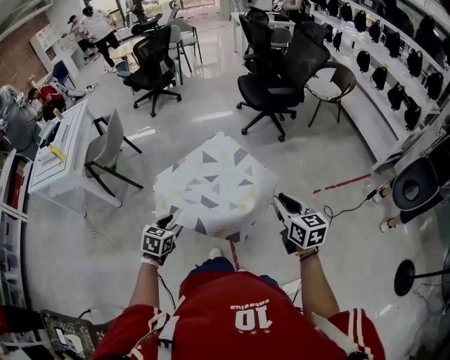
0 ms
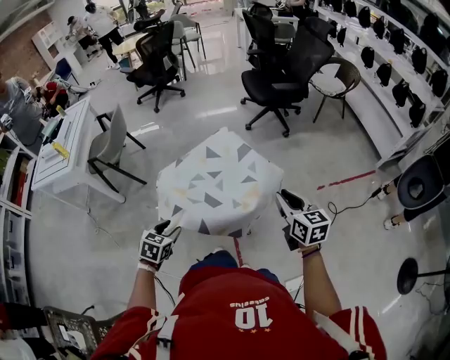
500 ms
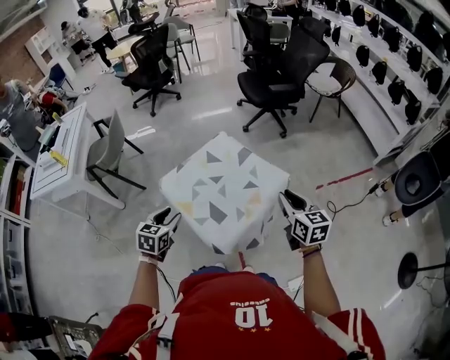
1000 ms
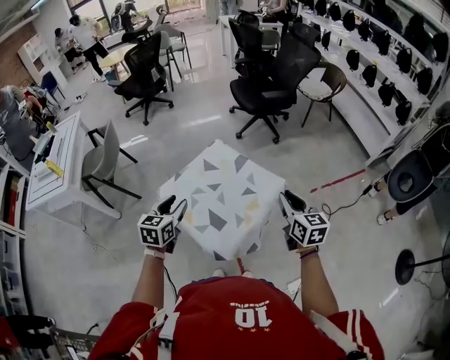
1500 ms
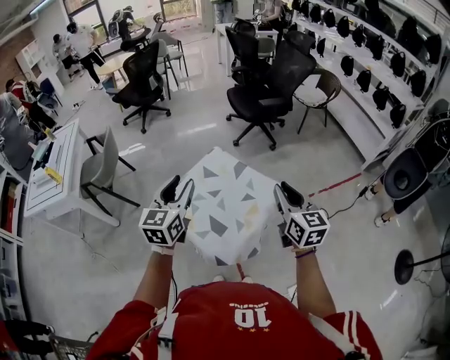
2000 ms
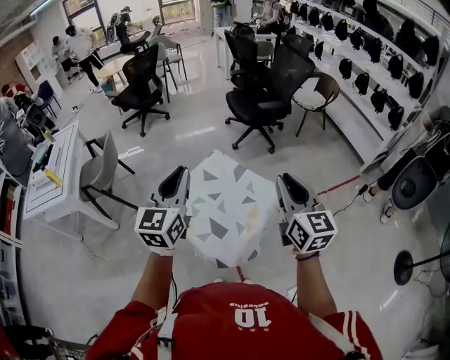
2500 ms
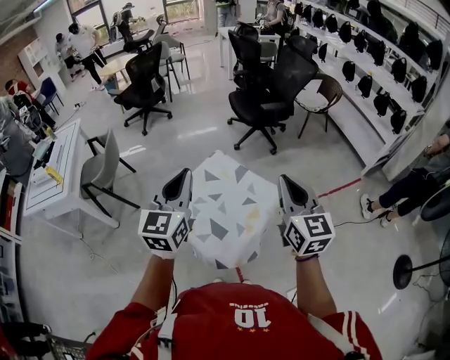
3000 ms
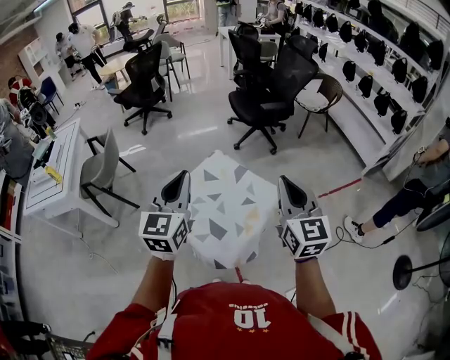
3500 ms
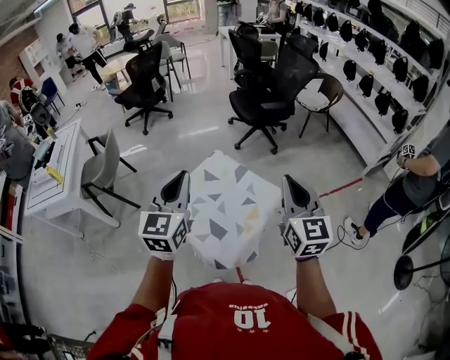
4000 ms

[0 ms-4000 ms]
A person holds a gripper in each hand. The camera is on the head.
0 ms to 2000 ms: The left gripper heads upward and forward, covering about 30 cm, and angles its fingers upward, by approximately 40 degrees. Meanwhile the right gripper shifts roughly 10 cm upward.
2000 ms to 4000 ms: Both grippers travel together upward, some 10 cm. The left gripper closes.

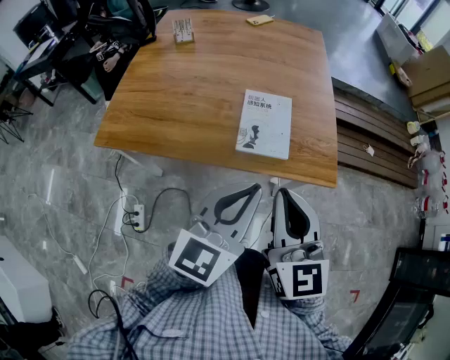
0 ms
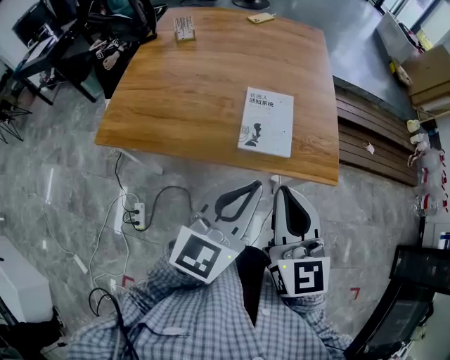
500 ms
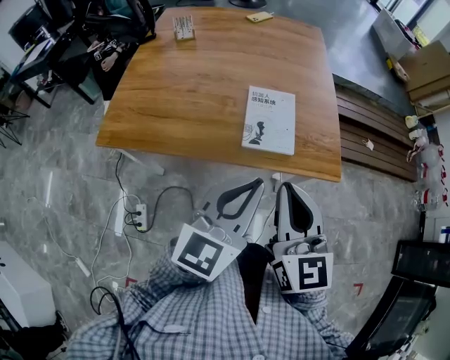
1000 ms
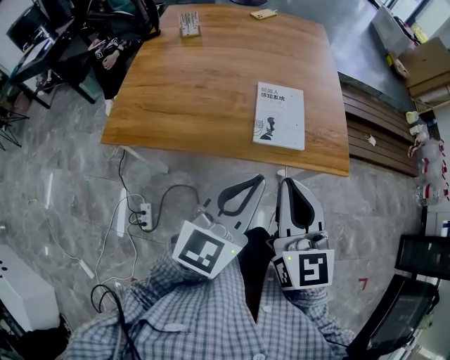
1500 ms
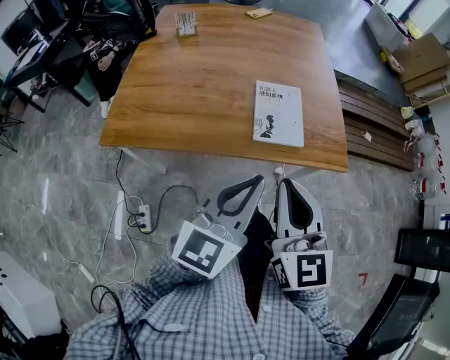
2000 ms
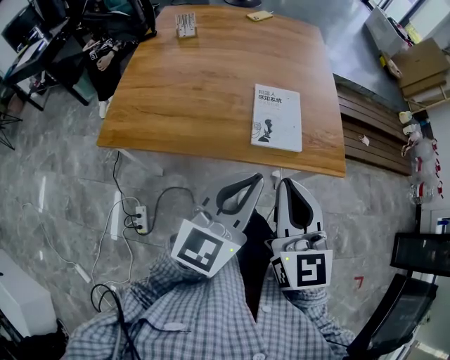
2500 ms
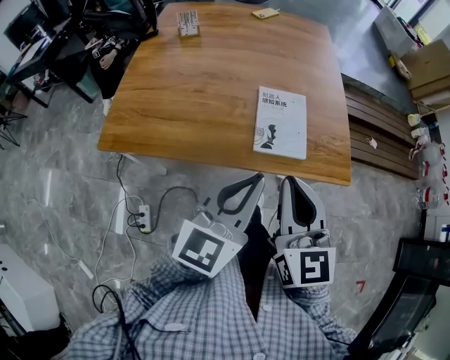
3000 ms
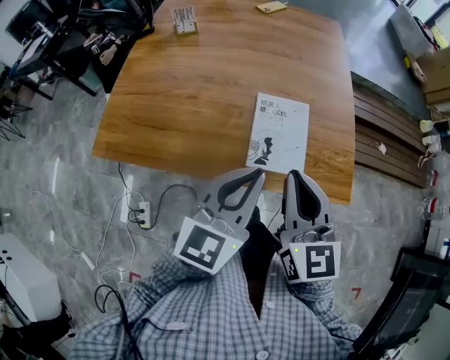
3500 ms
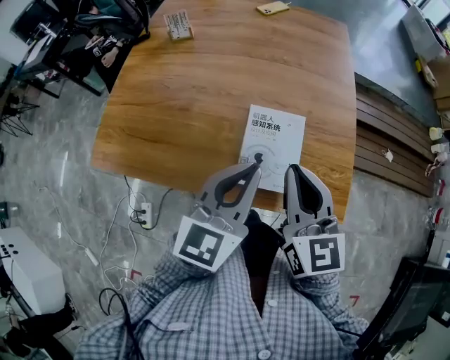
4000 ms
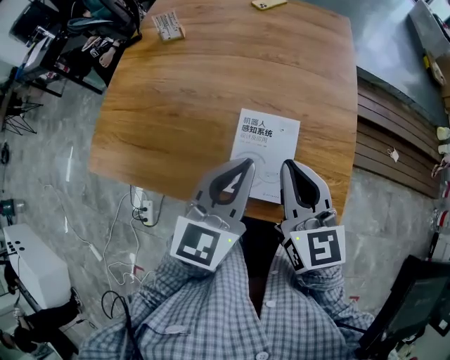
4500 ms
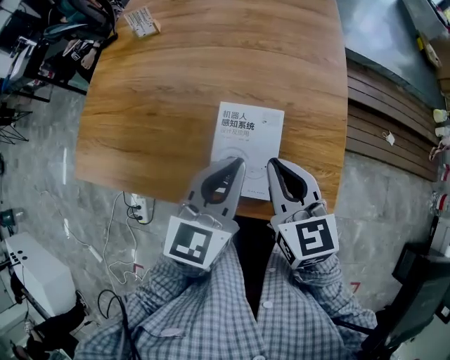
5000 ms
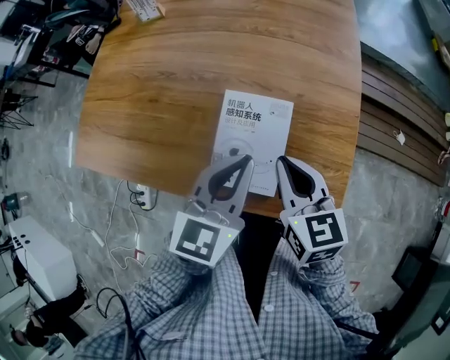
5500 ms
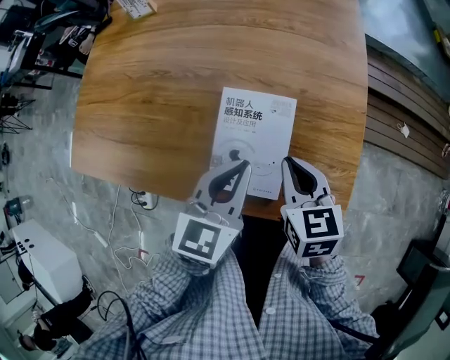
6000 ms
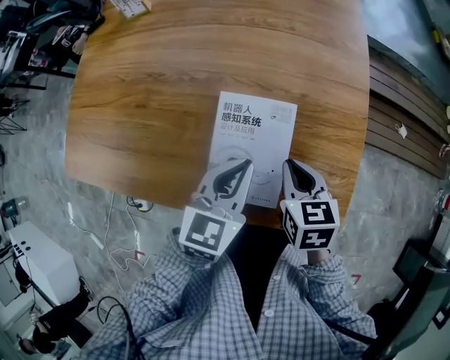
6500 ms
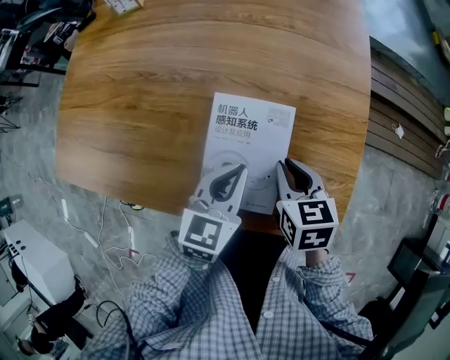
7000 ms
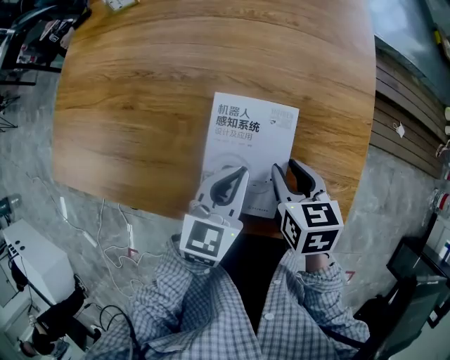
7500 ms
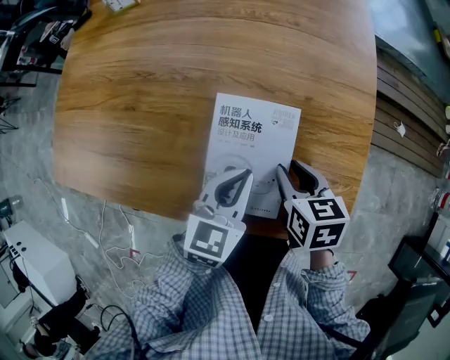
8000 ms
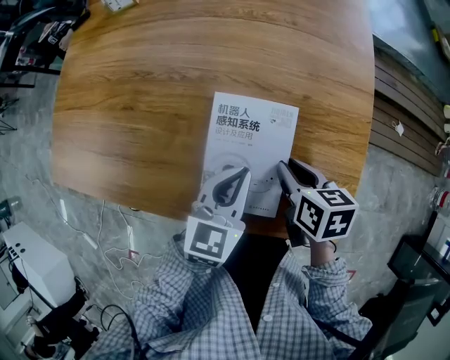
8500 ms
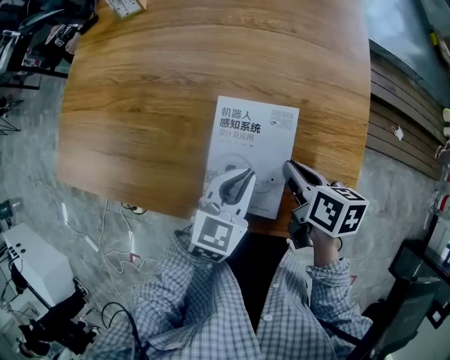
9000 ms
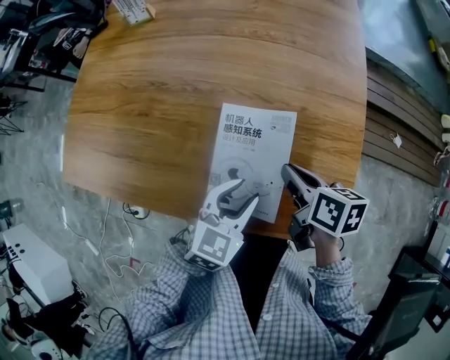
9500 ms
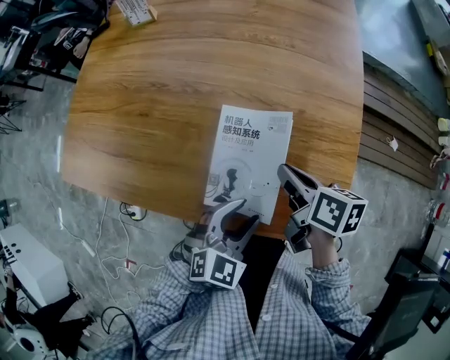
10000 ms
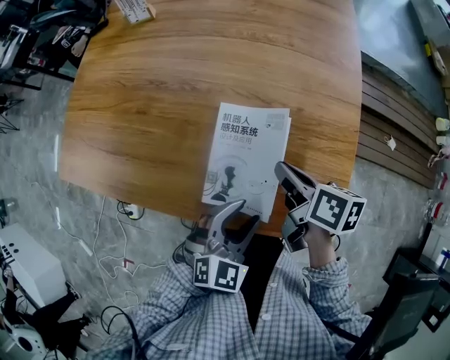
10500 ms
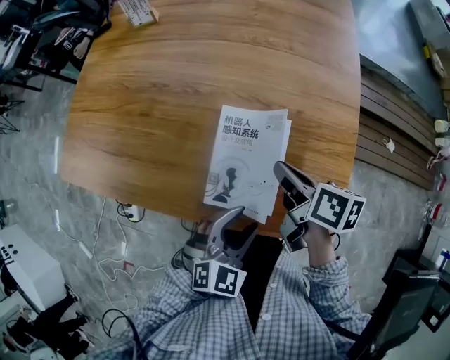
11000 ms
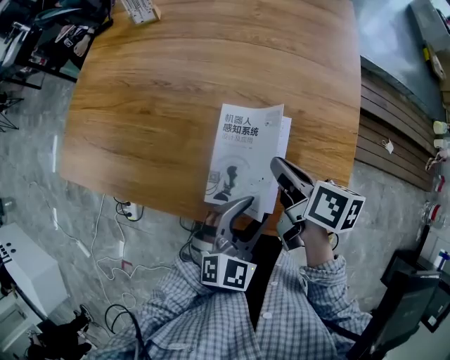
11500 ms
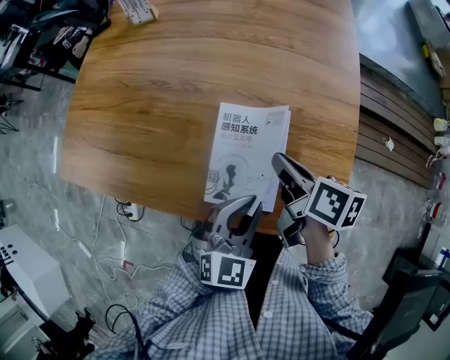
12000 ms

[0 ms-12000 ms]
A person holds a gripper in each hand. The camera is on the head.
0 ms to 2000 ms: Both grippers move to the left, some 5 cm.
2000 ms to 4000 ms: Both grippers move forward, roughly 25 cm.
4000 ms to 6000 ms: The right gripper travels downward and to the right by approximately 20 cm, and turns by about 30 degrees; the left gripper heads downward, forward and to the right, covering approximately 15 cm.
6000 ms to 8000 ms: Both grippers travel together downward, about 10 cm. The right gripper opens up.
8000 ms to 10000 ms: The left gripper moves backward, about 10 cm, turns by some 30 degrees, and opens up. The right gripper goes approximately 5 cm upward, changes its angle by some 30 degrees, and closes up.
10000 ms to 12000 ms: The left gripper closes its fingers.

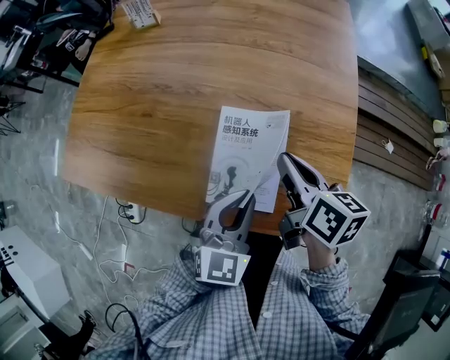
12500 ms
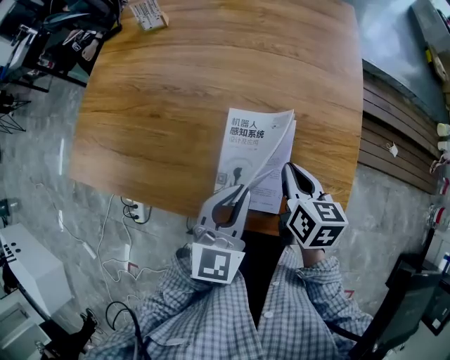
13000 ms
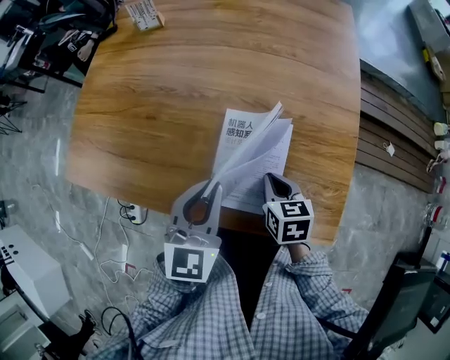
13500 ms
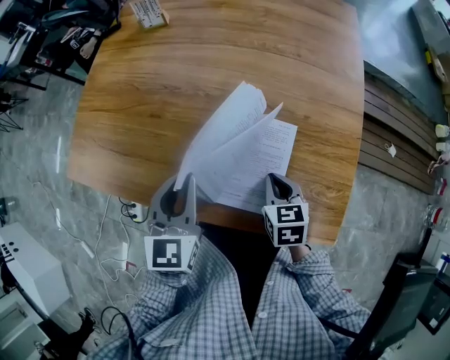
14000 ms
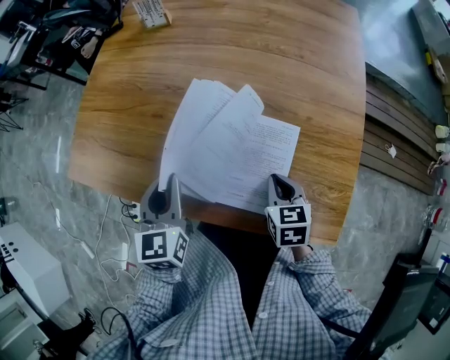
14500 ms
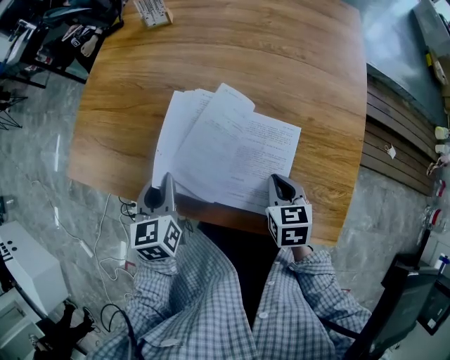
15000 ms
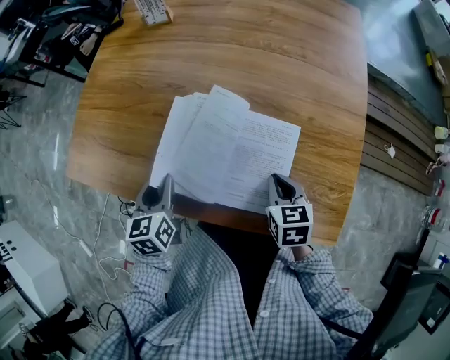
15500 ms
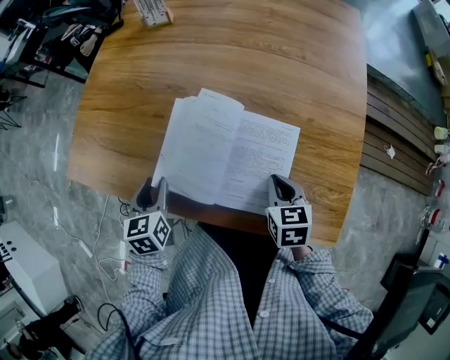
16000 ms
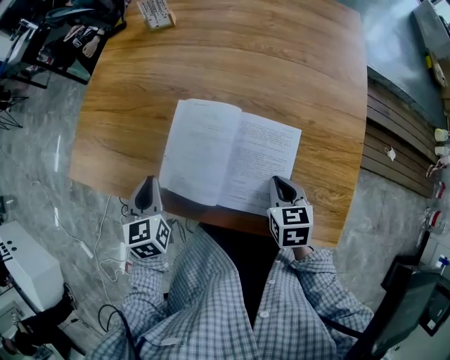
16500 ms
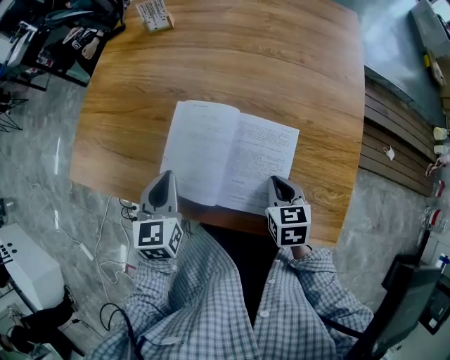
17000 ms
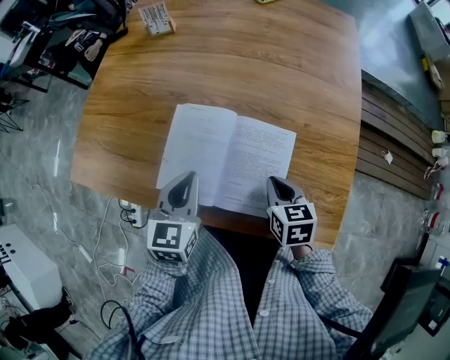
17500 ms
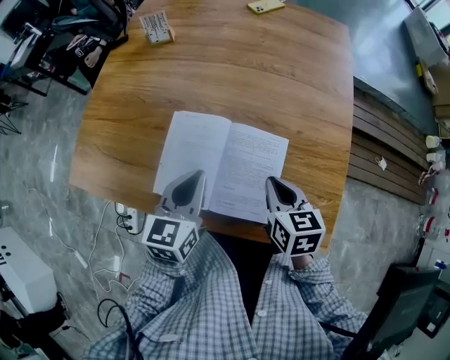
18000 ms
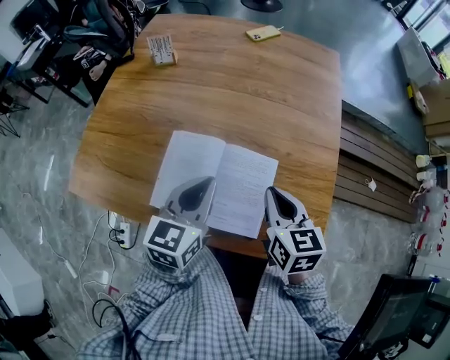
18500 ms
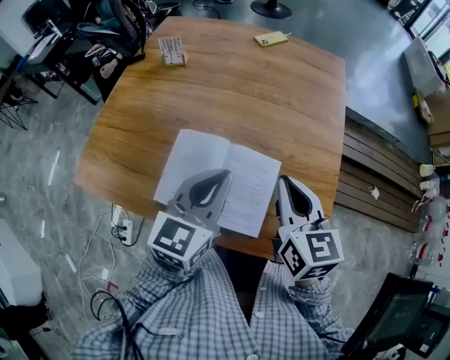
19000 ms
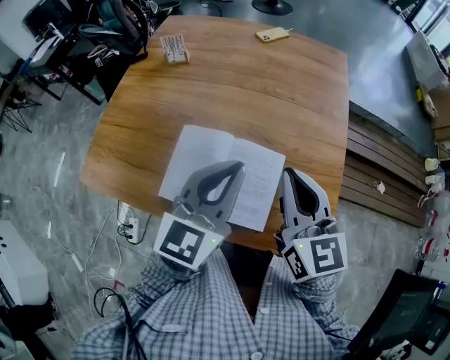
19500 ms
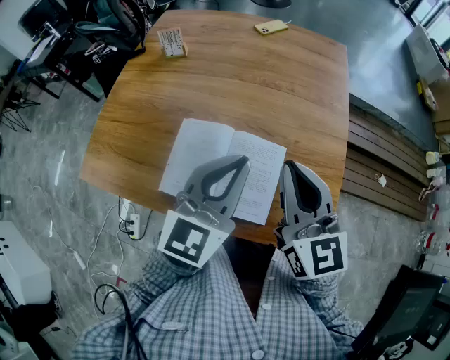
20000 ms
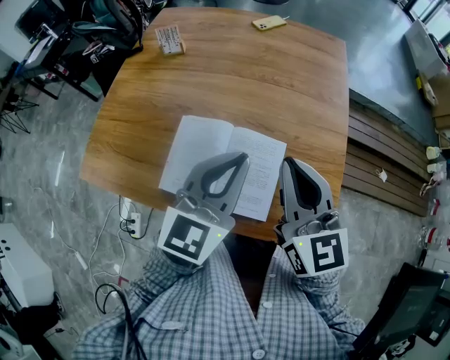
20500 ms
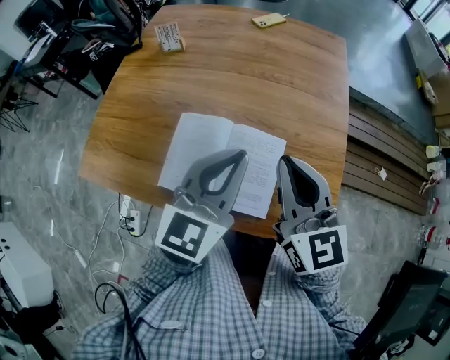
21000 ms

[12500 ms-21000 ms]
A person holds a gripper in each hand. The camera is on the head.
12500 ms to 14500 ms: The right gripper heads downward, covering approximately 10 cm, and turns by about 40 degrees. Meanwhile the left gripper goes about 20 cm to the left, and changes its angle by about 30 degrees.
14500 ms to 16500 ms: The left gripper heads to the left and downward, covering about 10 cm, and opens, then closes again.
16500 ms to 19000 ms: The left gripper shifts roughly 30 cm to the right and upward, and turns by about 40 degrees; the right gripper travels upward by some 25 cm, and turns by approximately 30 degrees.
19000 ms to 21000 ms: The left gripper changes place by some 5 cm. Meanwhile the right gripper ends up approximately 5 cm from where it was.

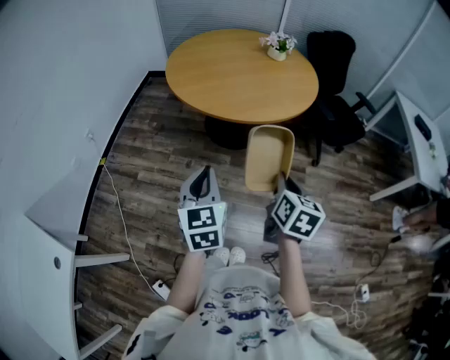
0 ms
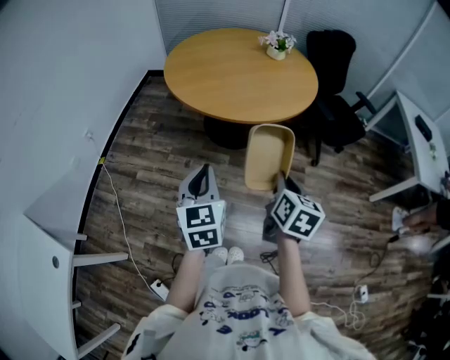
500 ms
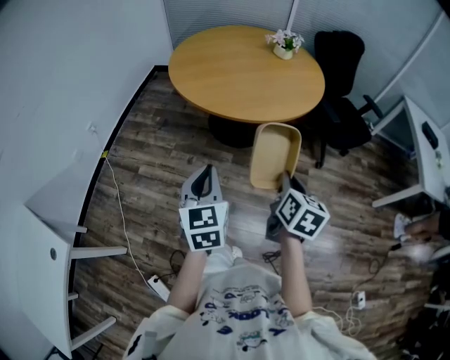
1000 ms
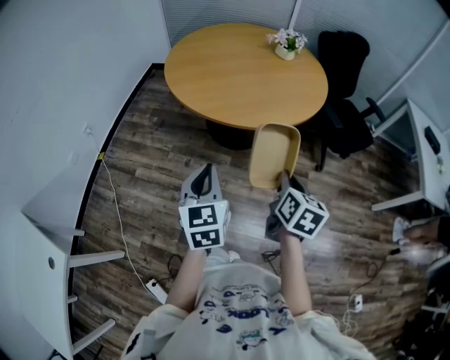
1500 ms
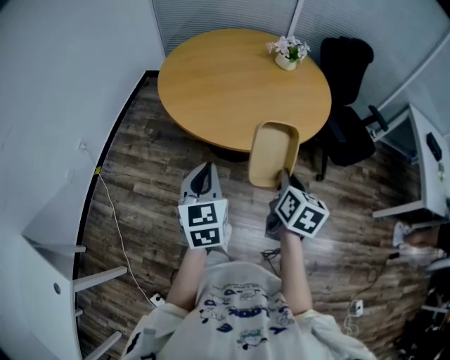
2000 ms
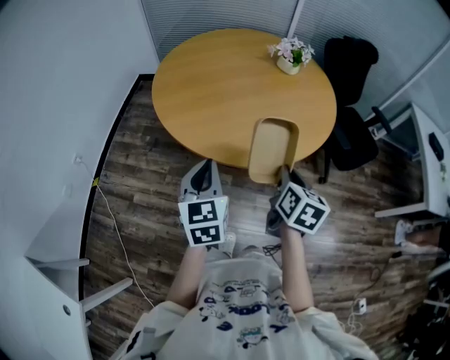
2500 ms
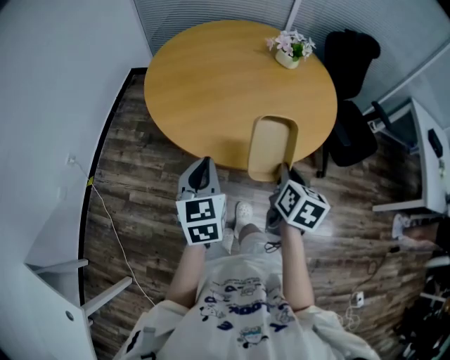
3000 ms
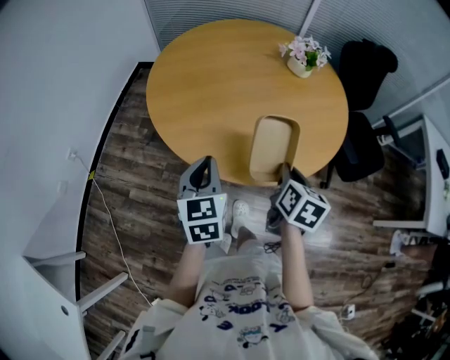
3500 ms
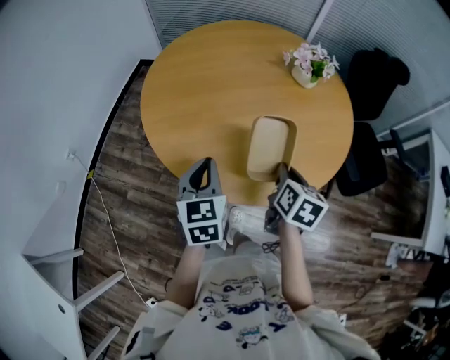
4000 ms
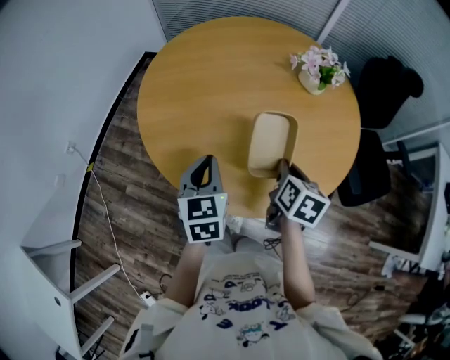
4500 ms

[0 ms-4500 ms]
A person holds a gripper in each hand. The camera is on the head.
0 ms to 2000 ms: The two grippers go about 15 cm forward.
2000 ms to 4500 ms: Both grippers move forward, roughly 25 cm.
